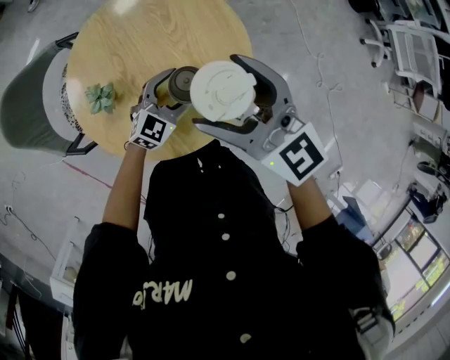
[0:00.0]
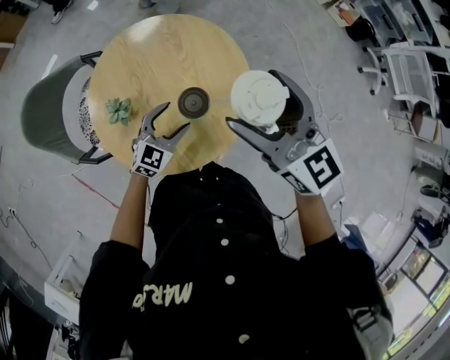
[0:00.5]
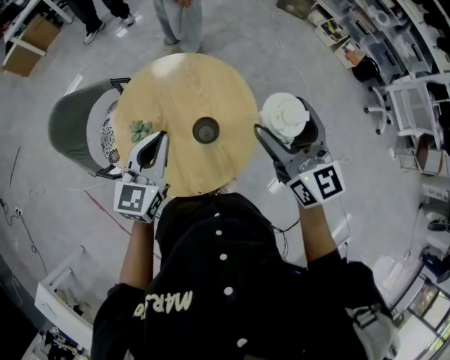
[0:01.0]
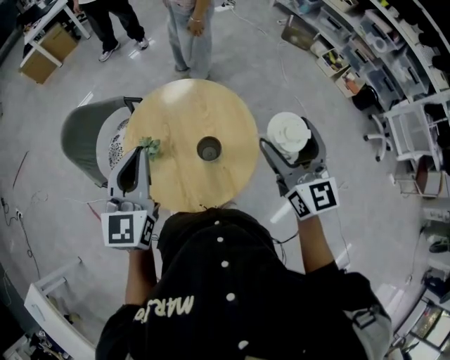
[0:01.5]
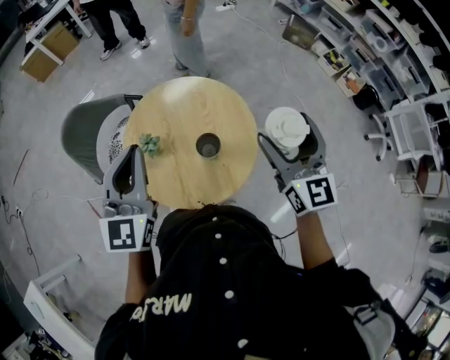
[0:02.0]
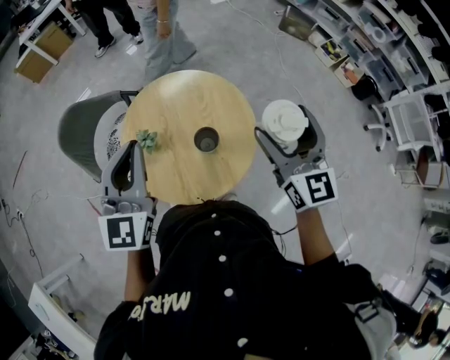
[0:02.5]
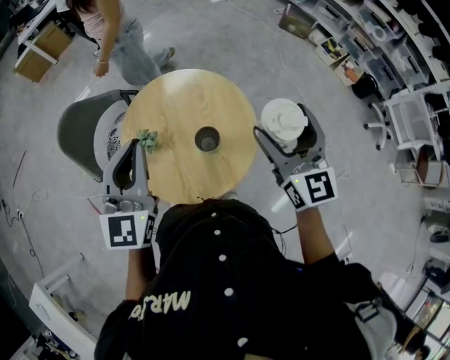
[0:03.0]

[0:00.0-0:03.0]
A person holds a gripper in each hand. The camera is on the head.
0:00.0 to 0:01.5: The left gripper moves upward and to the left, approximately 40 cm, turns by approximately 50 degrees, and closes its fingers. Meanwhile the right gripper moves upward and to the right, about 15 cm, and swivels some 20 degrees.
0:01.5 to 0:03.0: The grippers make only small movements.

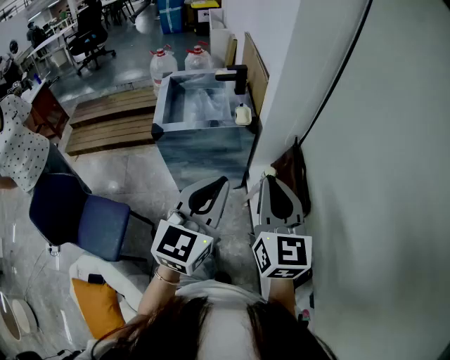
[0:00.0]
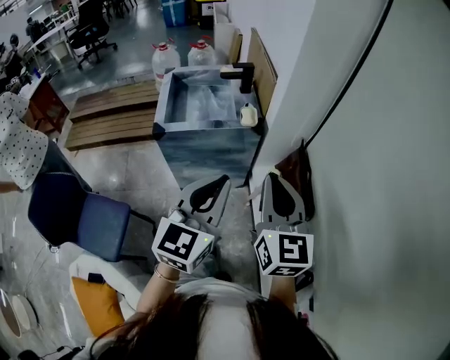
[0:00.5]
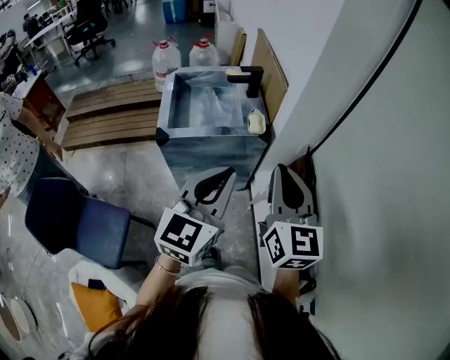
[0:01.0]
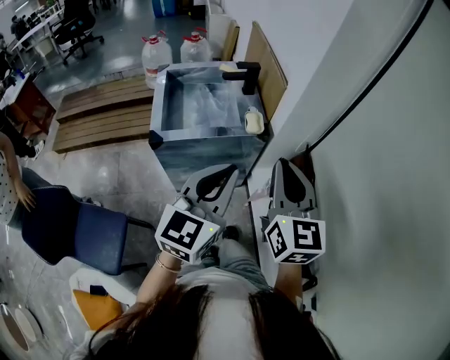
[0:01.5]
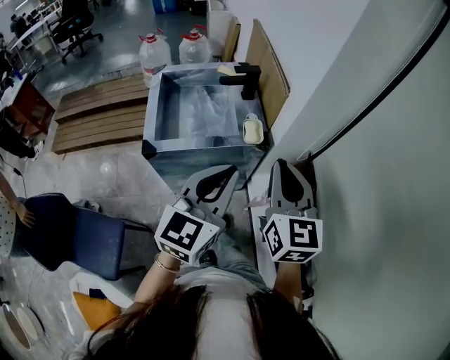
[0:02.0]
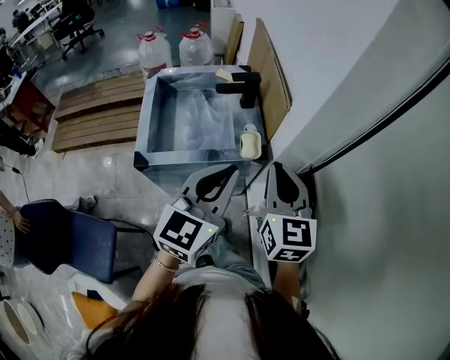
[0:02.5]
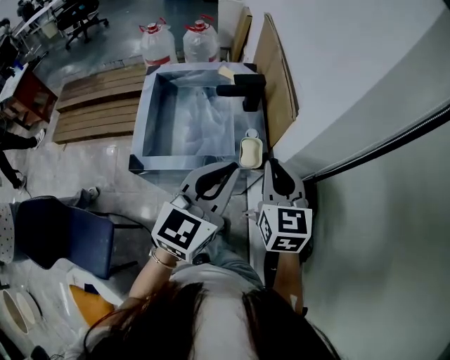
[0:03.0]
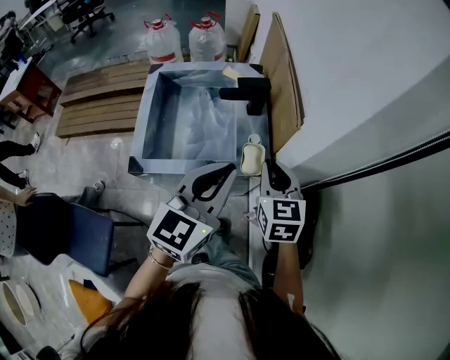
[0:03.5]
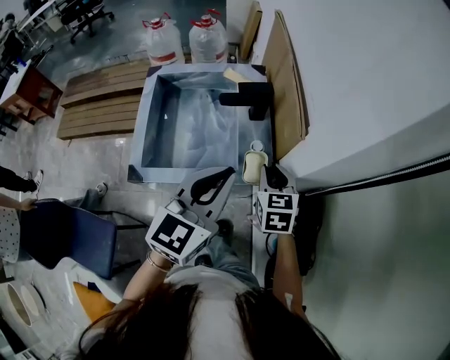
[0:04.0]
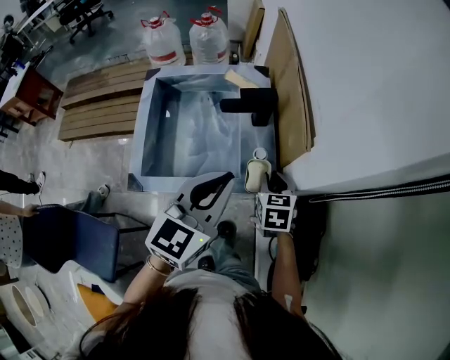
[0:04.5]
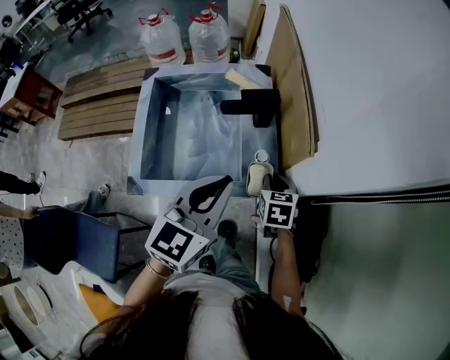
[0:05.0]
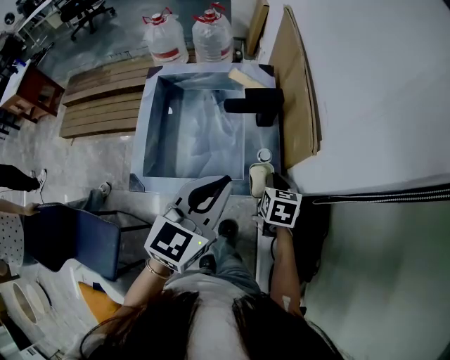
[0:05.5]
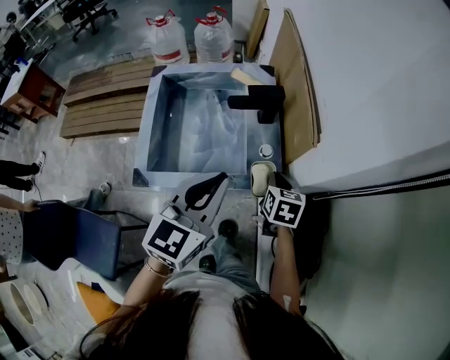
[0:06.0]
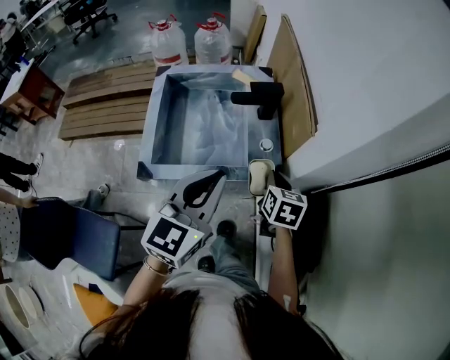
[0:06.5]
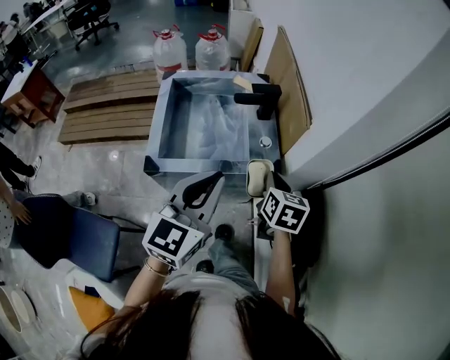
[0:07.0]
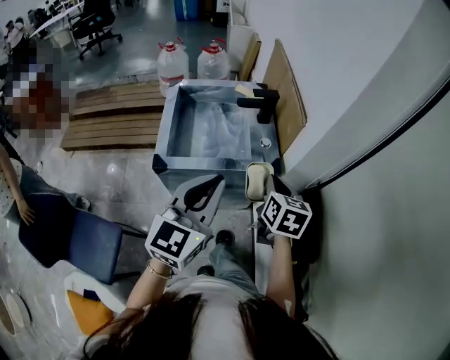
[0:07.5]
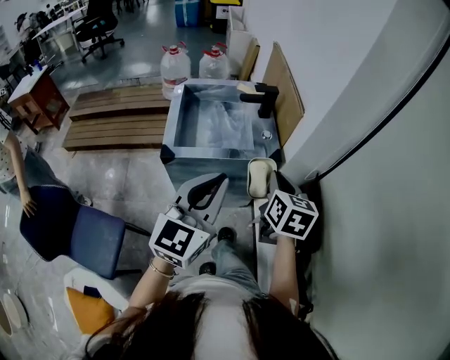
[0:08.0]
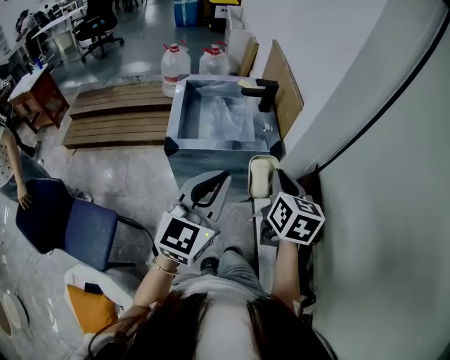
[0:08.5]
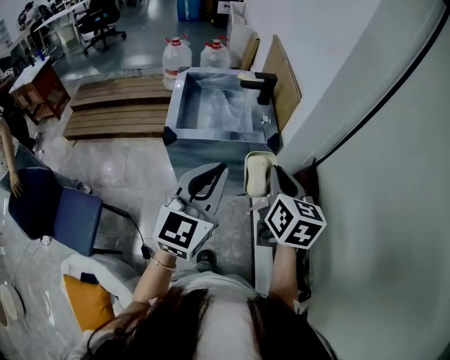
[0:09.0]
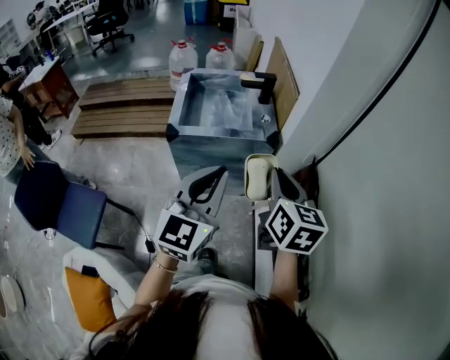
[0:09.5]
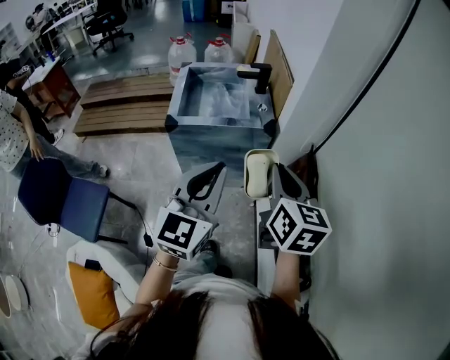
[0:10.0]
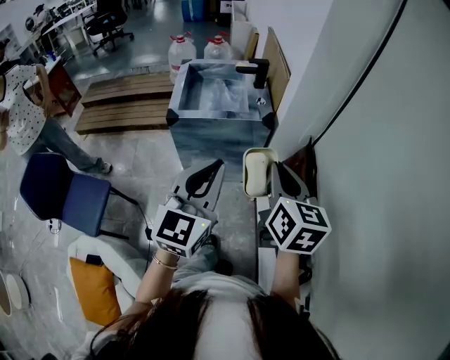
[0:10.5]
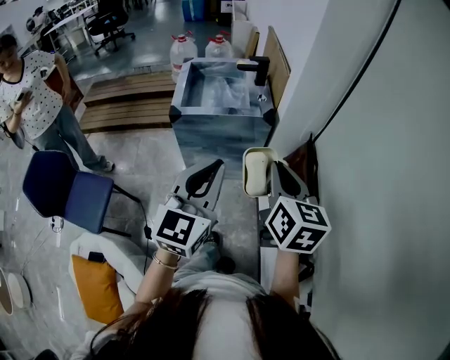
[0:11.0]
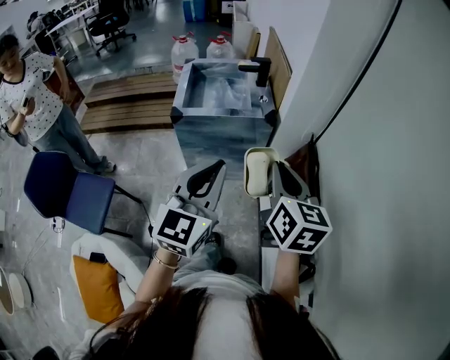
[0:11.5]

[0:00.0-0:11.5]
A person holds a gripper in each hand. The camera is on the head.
0:00.0 to 0:02.0: The grippers both shift forward by approximately 20 cm.
0:02.0 to 0:04.0: The left gripper travels forward by some 20 cm; the right gripper goes about 35 cm forward and downward, and turns by about 30 degrees.
0:04.0 to 0:06.0: The right gripper moves downward, some 5 cm.
0:06.0 to 0:07.5: Both grippers travel together backward and upward, approximately 20 cm.
0:07.5 to 0:09.5: The left gripper is displaced backward by approximately 15 cm. Meanwhile the right gripper moves backward and upward, about 20 cm.
0:09.5 to 0:11.5: The two grippers go about 10 cm backward.

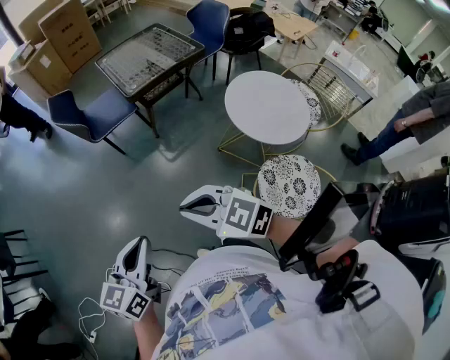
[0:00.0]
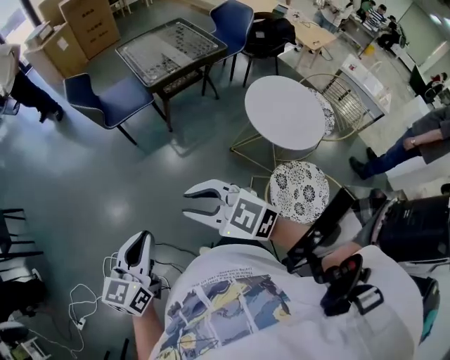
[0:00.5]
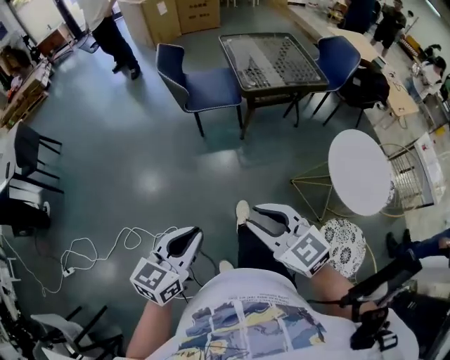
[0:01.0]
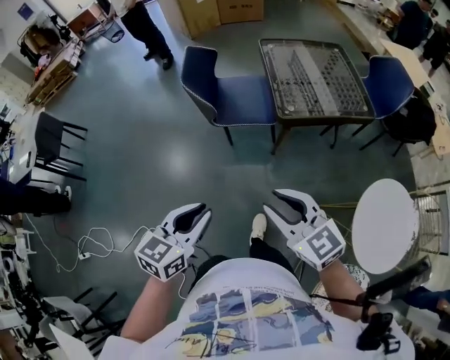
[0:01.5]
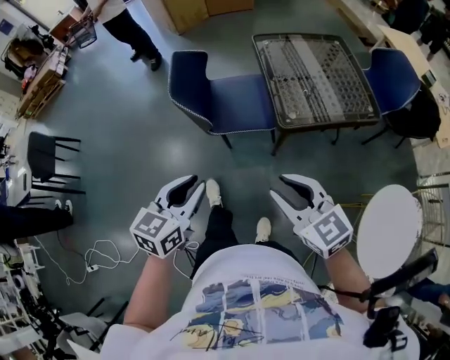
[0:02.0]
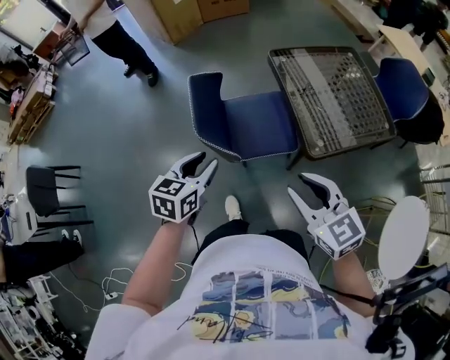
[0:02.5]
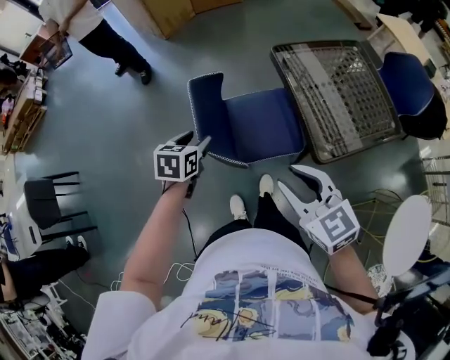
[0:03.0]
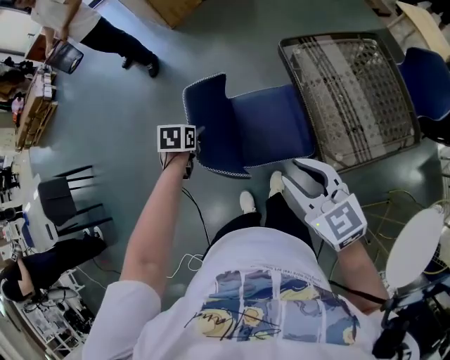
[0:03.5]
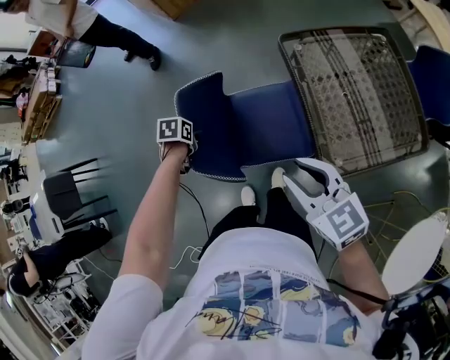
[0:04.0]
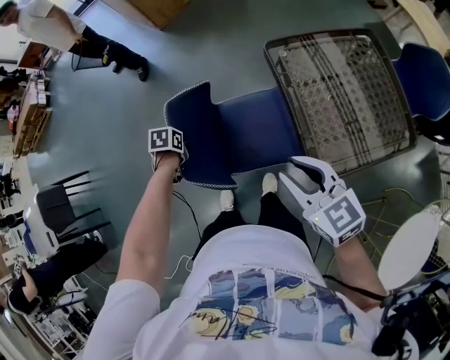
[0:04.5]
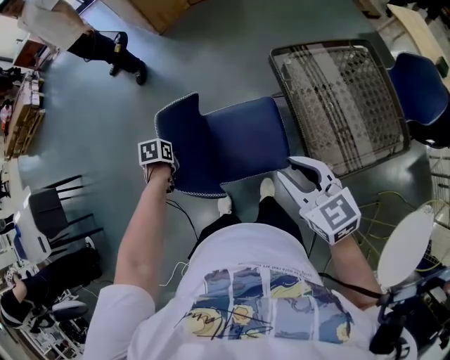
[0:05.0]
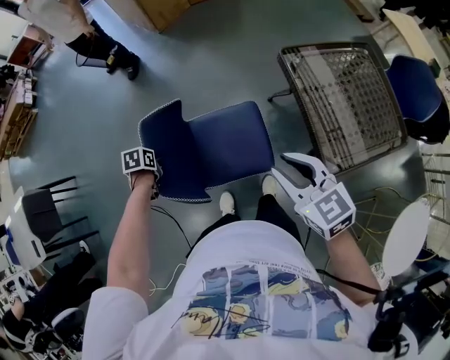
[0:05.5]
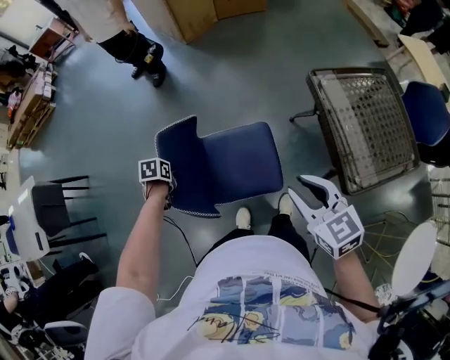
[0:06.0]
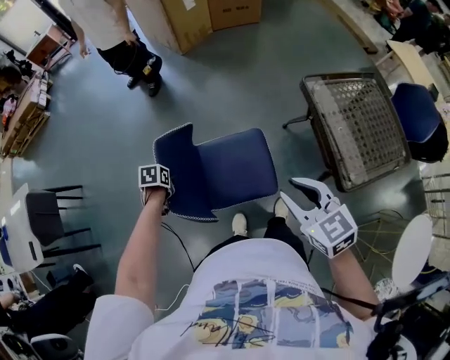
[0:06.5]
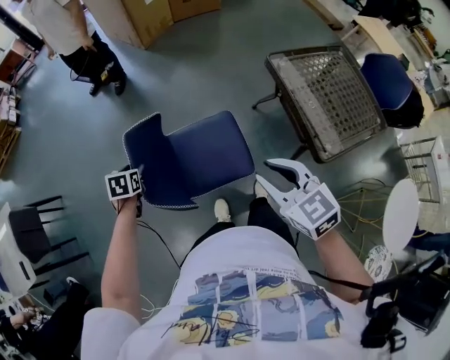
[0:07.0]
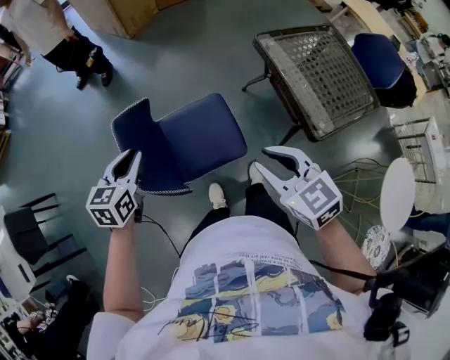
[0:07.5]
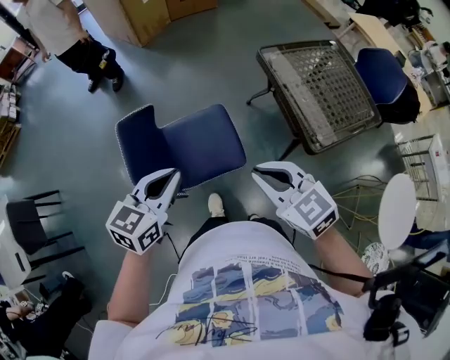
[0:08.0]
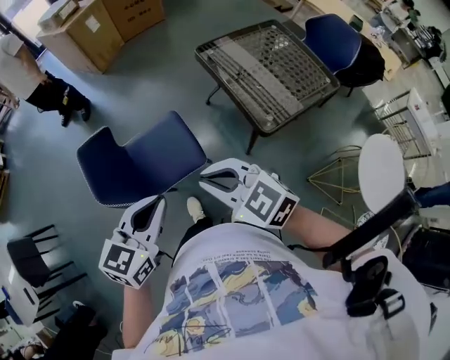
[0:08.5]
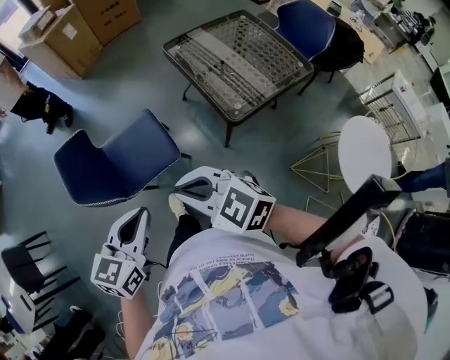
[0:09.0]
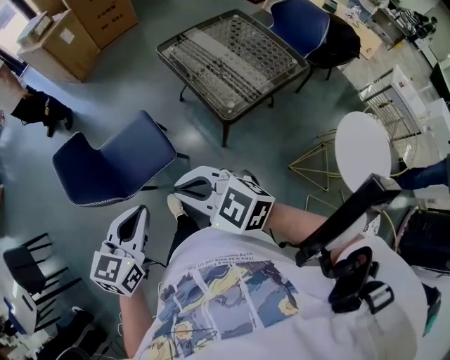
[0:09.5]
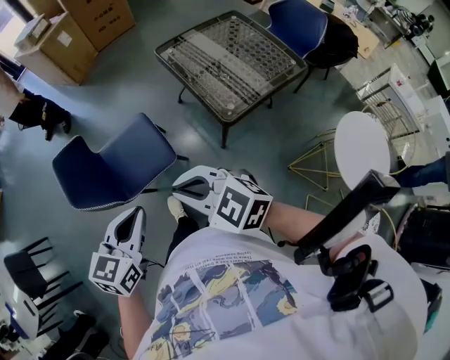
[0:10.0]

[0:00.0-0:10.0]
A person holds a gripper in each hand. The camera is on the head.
0:00.0 to 0:02.0: The two grippers travel together, forward, some 50 cm. The right gripper opens up.
0:02.0 to 0:04.0: The two grippers travel together, some 50 cm. The left gripper points its fingers about 50 degrees further downward, and opens up.
0:04.0 to 0:06.0: The right gripper shifts by approximately 20 cm; the left gripper changes place by approximately 30 cm, and closes its fingers.
0:06.0 to 0:08.0: The left gripper travels upward by some 30 cm, angles its fingers upward, by about 50 degrees, and opens, then closes again. Meanwhile the right gripper shifts by approximately 10 cm, and closes its fingers.
0:08.0 to 0:10.0: The left gripper is displaced to the right and backward by roughly 25 cm, while the right gripper shifts some 20 cm backward and to the right.

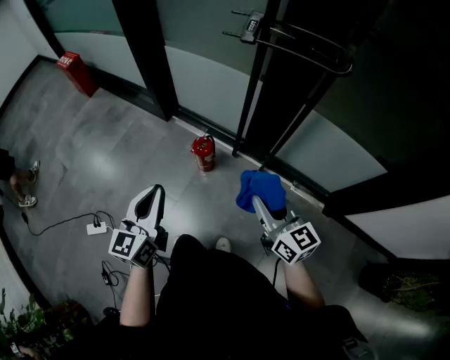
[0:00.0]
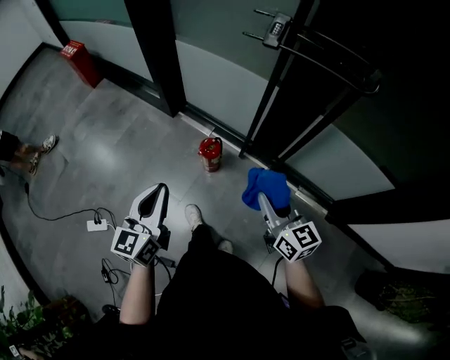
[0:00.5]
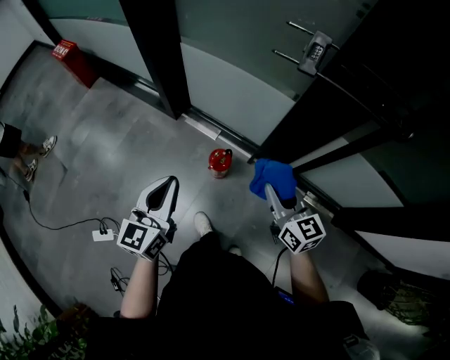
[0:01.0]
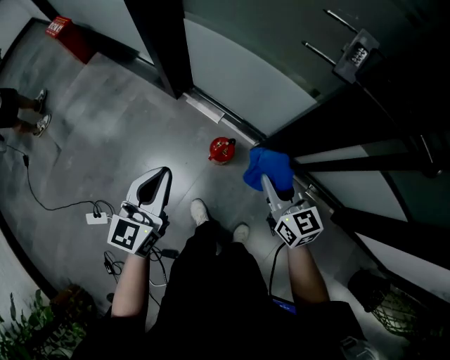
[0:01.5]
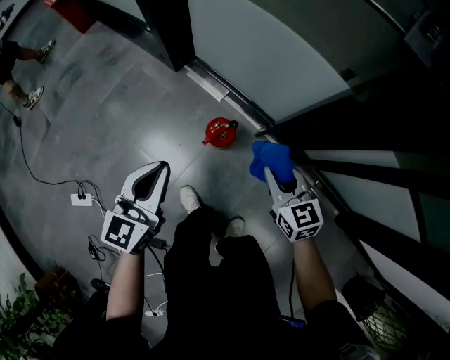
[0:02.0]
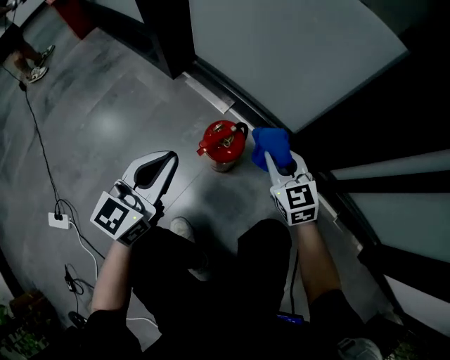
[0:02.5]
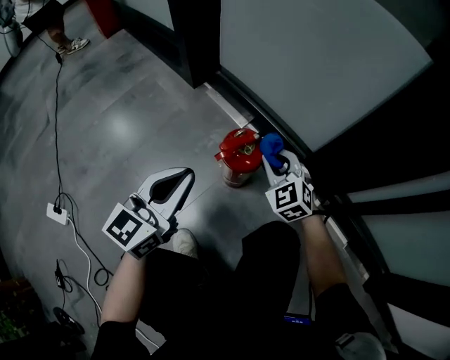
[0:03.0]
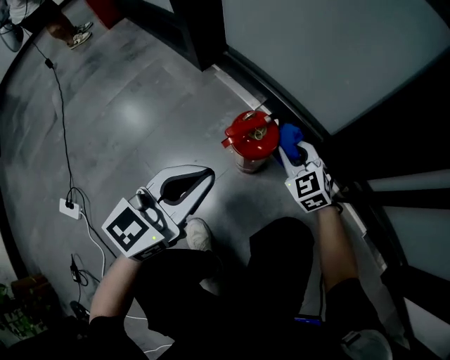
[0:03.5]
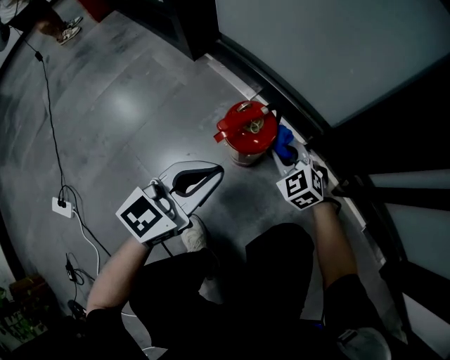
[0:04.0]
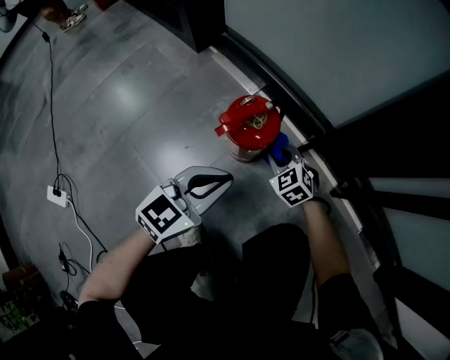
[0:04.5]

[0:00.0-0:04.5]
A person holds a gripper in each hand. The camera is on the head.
0:00.0 to 0:02.0: The grippers both shift forward and downward by about 40 cm. The right gripper rotates approximately 20 degrees.
0:02.0 to 0:04.5: Both grippers move downward, some 50 cm. The left gripper turns by roughly 20 degrees; the right gripper swivels about 40 degrees.
